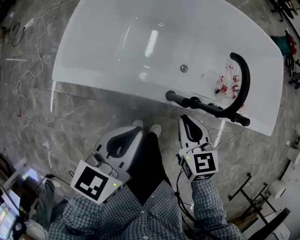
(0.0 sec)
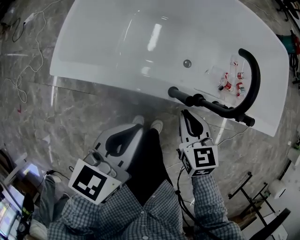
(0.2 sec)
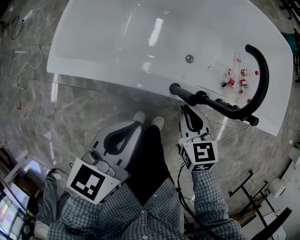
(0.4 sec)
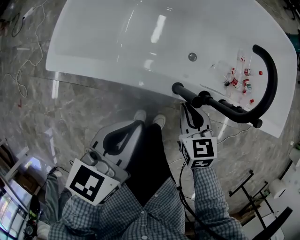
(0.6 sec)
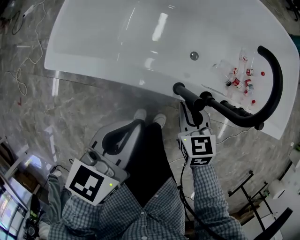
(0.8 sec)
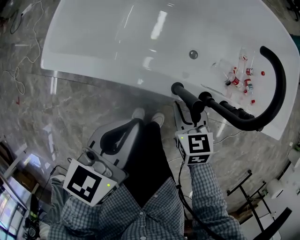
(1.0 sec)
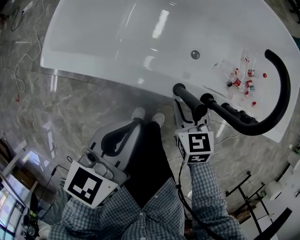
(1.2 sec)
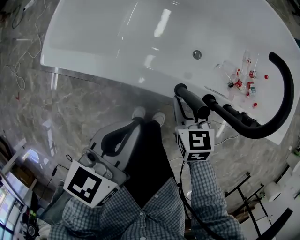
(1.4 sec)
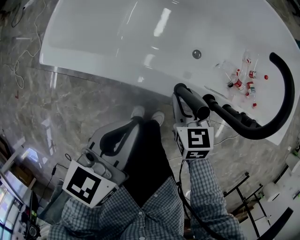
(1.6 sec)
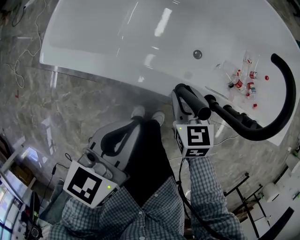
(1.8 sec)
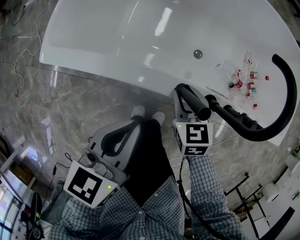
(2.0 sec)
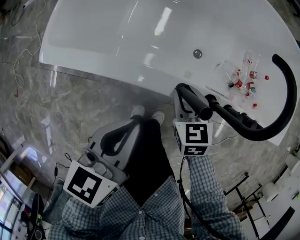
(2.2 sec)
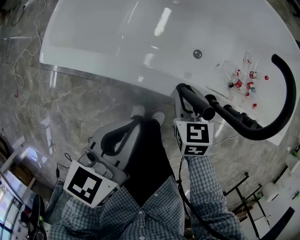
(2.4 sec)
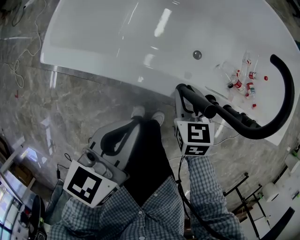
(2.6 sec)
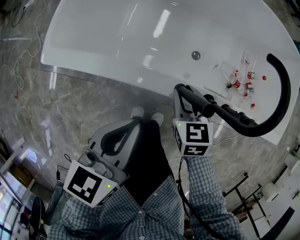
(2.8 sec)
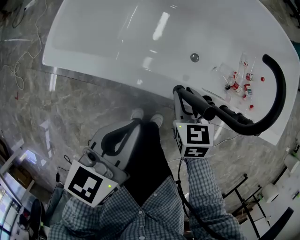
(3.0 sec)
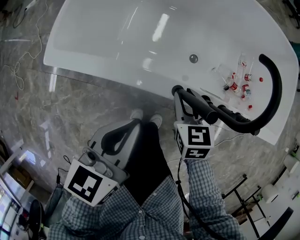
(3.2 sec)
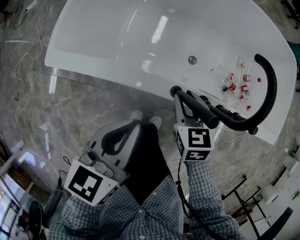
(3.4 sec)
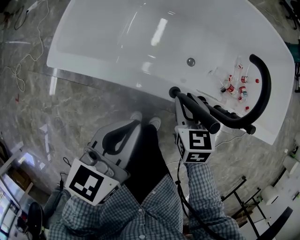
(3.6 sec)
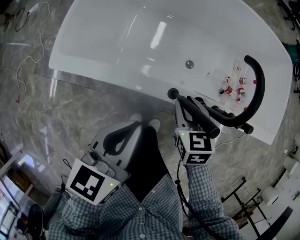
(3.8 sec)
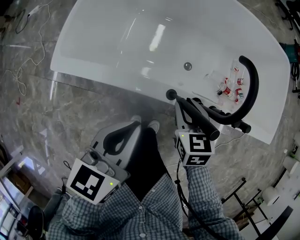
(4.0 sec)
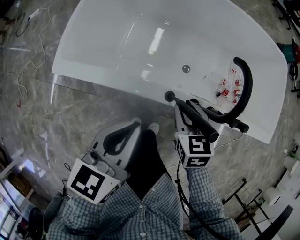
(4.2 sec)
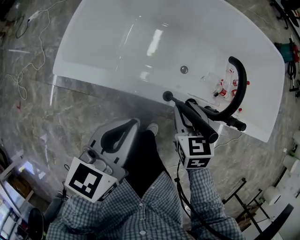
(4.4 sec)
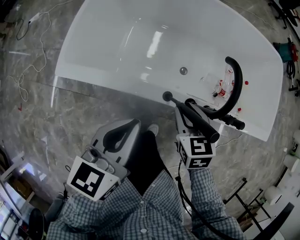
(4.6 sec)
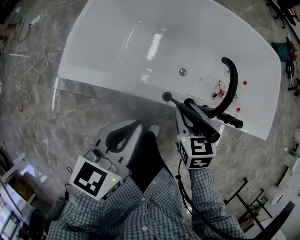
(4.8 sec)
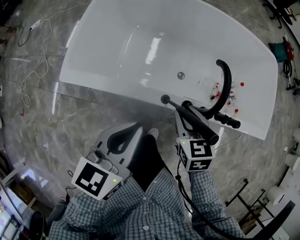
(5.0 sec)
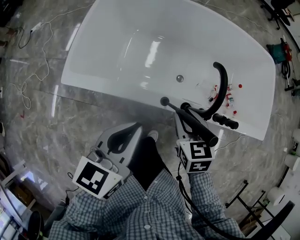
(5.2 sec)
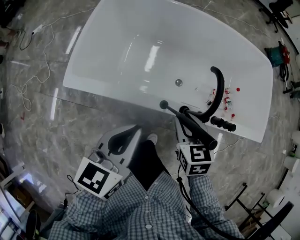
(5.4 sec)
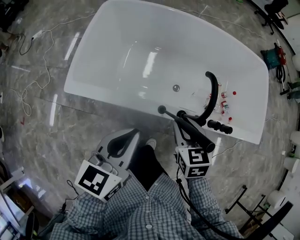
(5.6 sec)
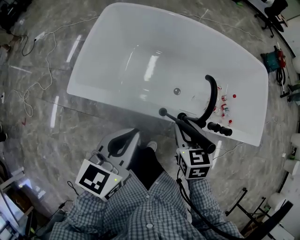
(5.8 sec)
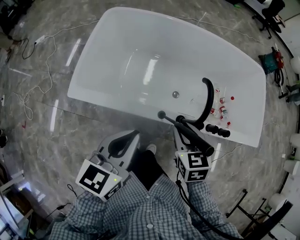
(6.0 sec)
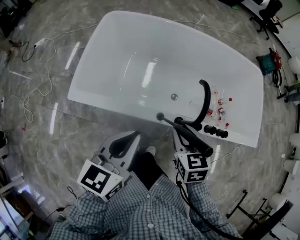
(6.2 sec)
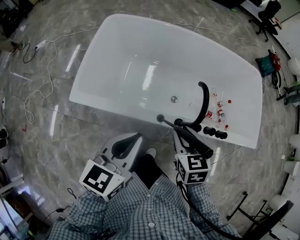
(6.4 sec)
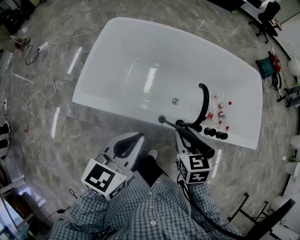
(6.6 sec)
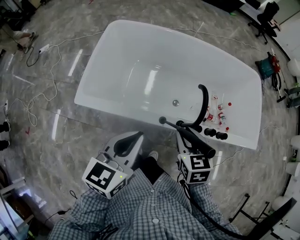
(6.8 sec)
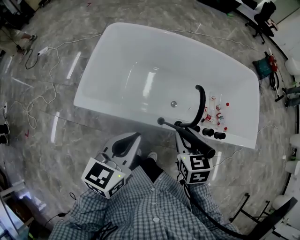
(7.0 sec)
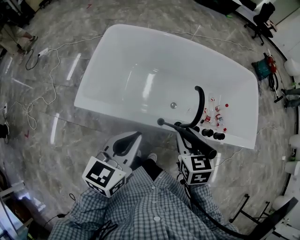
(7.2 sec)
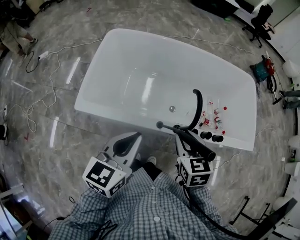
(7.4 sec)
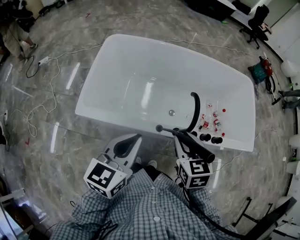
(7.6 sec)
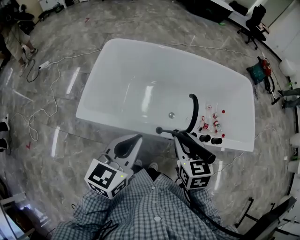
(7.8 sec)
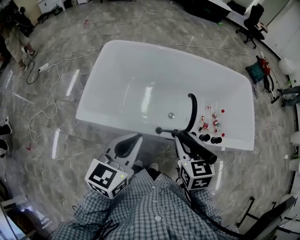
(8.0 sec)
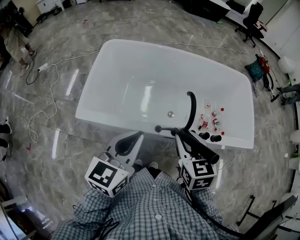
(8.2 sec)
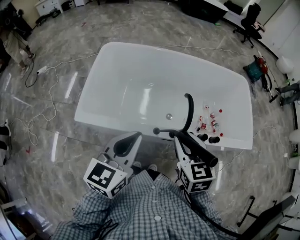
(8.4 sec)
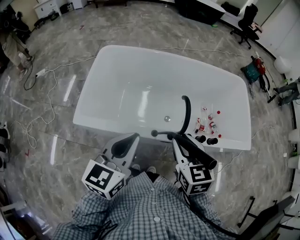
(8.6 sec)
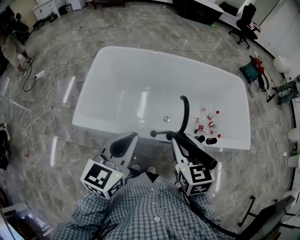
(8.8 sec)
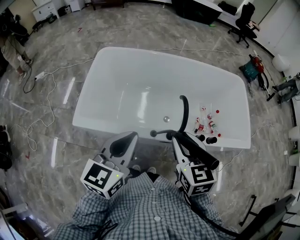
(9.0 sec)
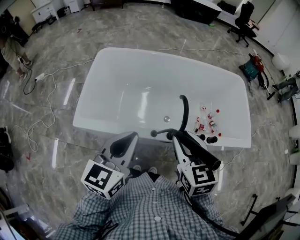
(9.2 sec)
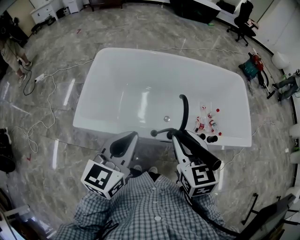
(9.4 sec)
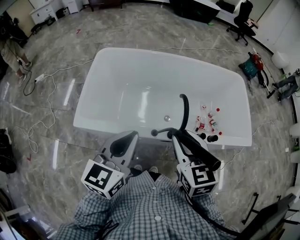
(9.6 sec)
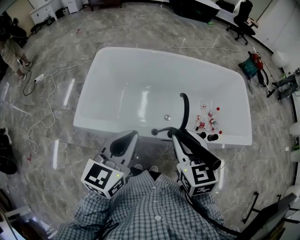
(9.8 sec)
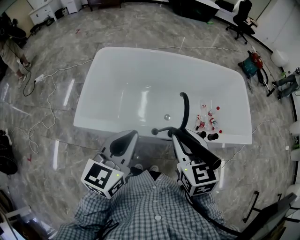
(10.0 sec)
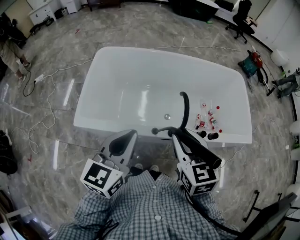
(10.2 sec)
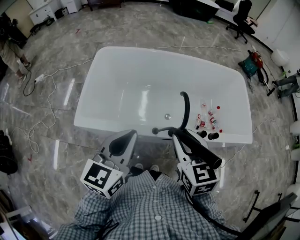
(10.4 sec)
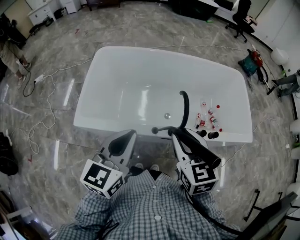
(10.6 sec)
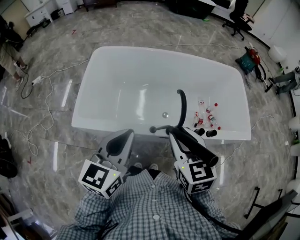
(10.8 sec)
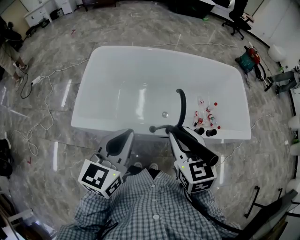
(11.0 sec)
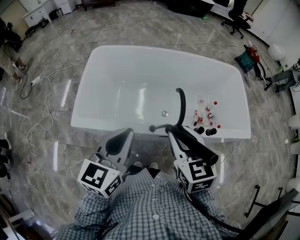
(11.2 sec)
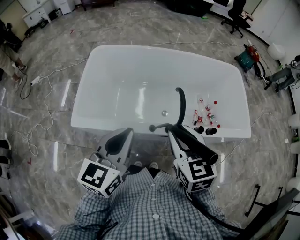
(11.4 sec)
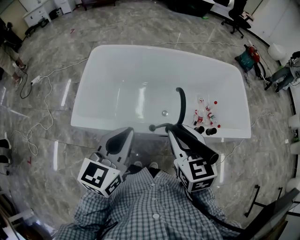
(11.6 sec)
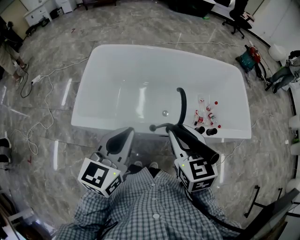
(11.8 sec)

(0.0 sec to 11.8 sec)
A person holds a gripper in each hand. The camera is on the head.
0.0 sec - 1.4 sec: The right gripper heads downward, covering about 15 cm, and opens. Meanwhile the left gripper shifts approximately 10 cm downward.
1.4 sec - 3.0 sec: There are only small adjustments of the grippers.
3.0 sec - 4.4 sec: Both grippers move upward, roughly 10 cm.
4.4 sec - 6.0 sec: The two grippers go some 10 cm upward.
6.0 sec - 7.4 sec: Both grippers move upward, approximately 5 cm.
7.4 sec - 8.8 sec: The left gripper shifts by approximately 5 cm. Meanwhile the right gripper moves upward, some 5 cm.
8.8 sec - 10.4 sec: There are only small adjustments of the grippers.
10.4 sec - 11.8 sec: Both grippers stay put.

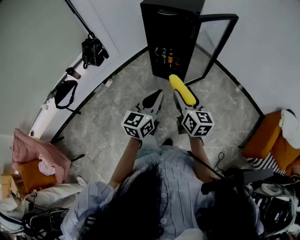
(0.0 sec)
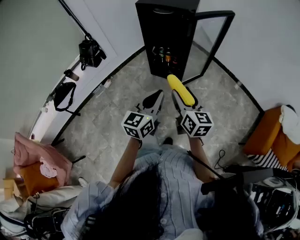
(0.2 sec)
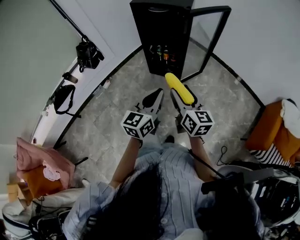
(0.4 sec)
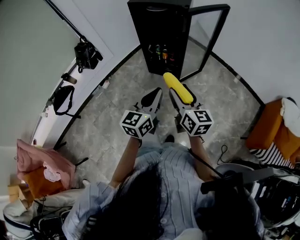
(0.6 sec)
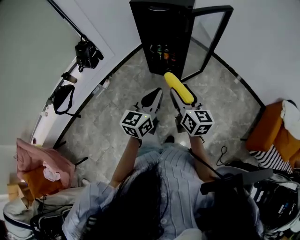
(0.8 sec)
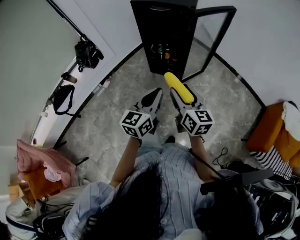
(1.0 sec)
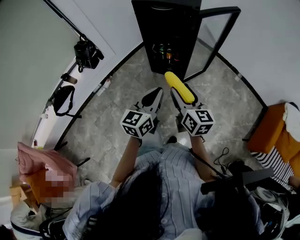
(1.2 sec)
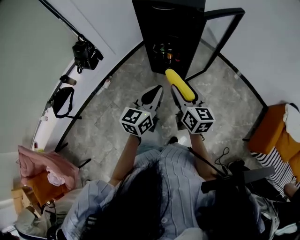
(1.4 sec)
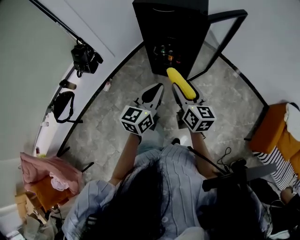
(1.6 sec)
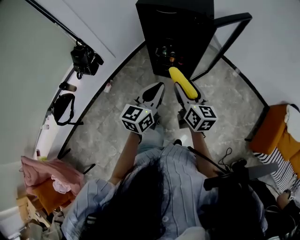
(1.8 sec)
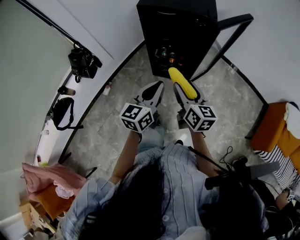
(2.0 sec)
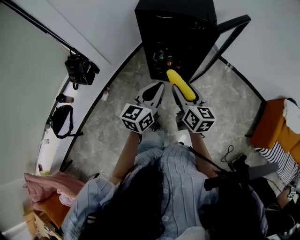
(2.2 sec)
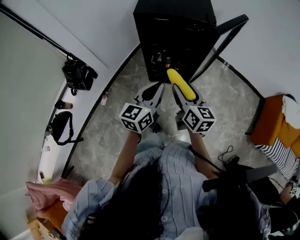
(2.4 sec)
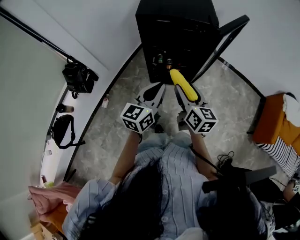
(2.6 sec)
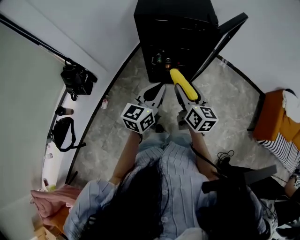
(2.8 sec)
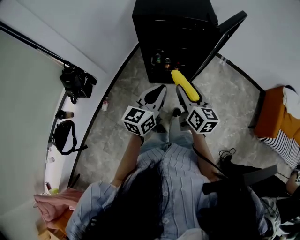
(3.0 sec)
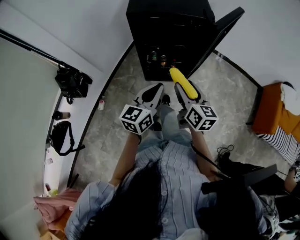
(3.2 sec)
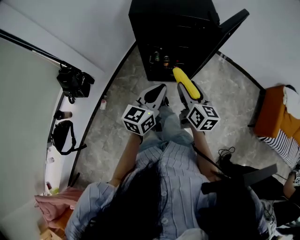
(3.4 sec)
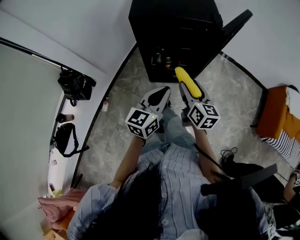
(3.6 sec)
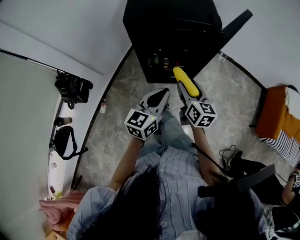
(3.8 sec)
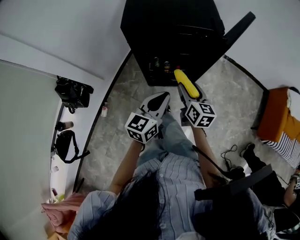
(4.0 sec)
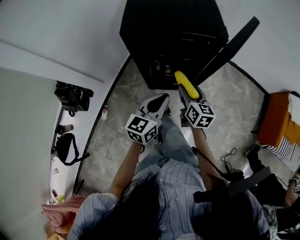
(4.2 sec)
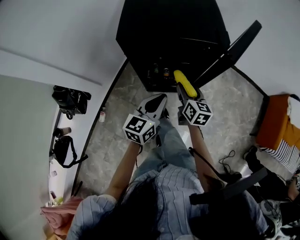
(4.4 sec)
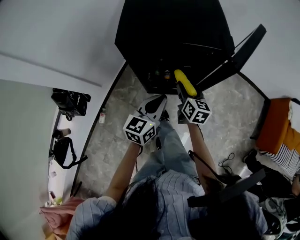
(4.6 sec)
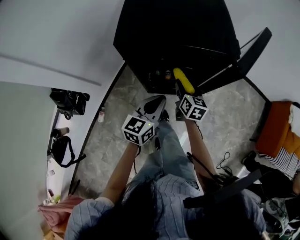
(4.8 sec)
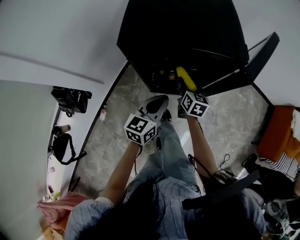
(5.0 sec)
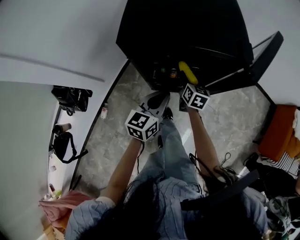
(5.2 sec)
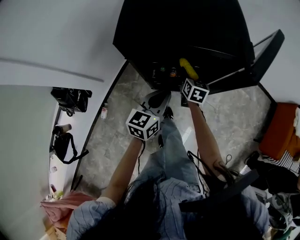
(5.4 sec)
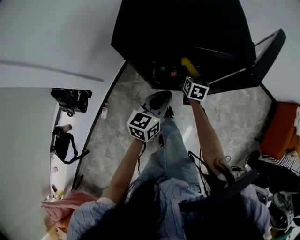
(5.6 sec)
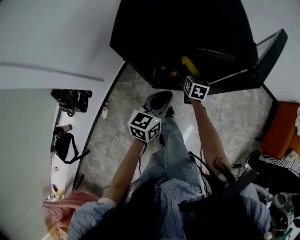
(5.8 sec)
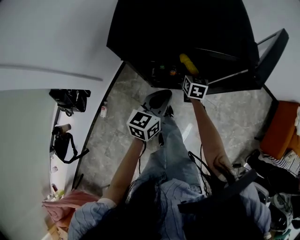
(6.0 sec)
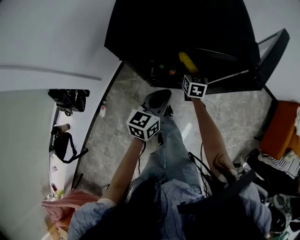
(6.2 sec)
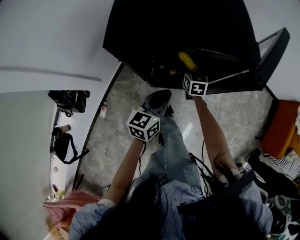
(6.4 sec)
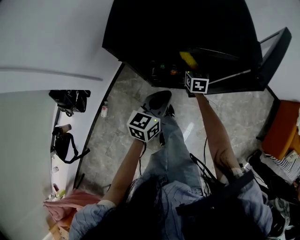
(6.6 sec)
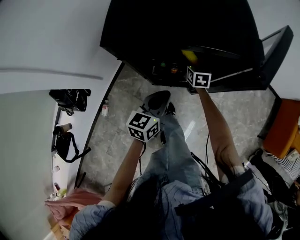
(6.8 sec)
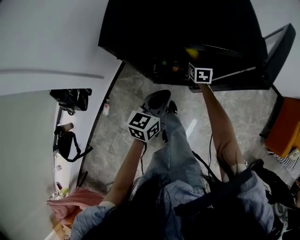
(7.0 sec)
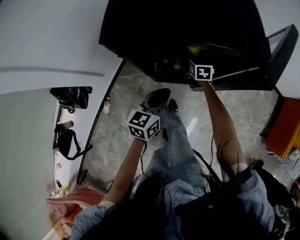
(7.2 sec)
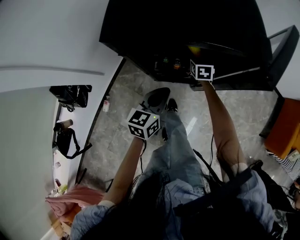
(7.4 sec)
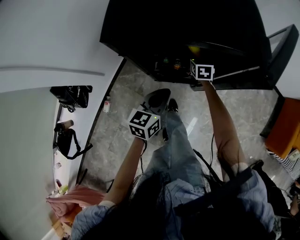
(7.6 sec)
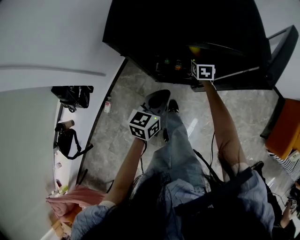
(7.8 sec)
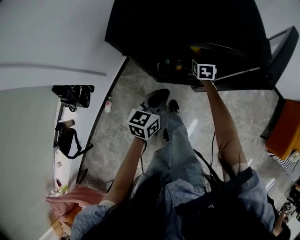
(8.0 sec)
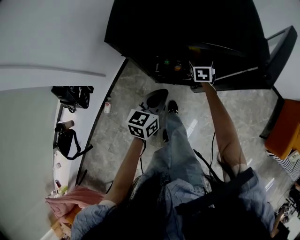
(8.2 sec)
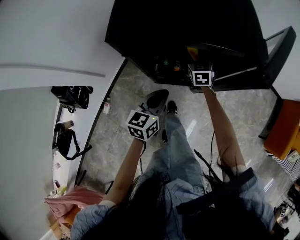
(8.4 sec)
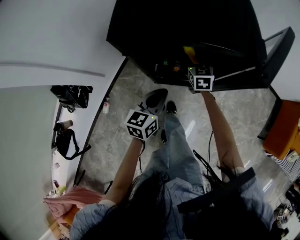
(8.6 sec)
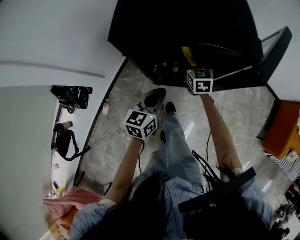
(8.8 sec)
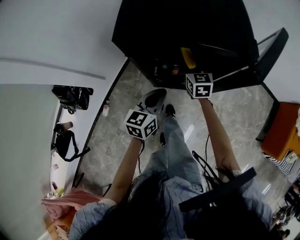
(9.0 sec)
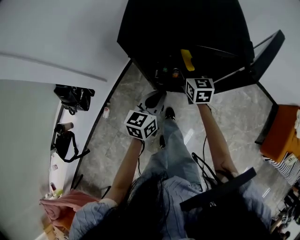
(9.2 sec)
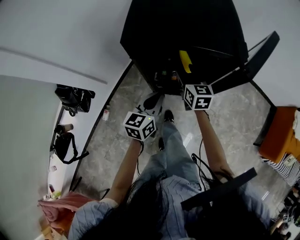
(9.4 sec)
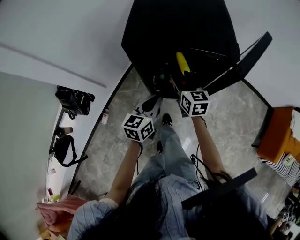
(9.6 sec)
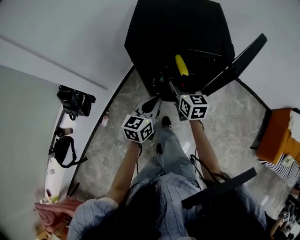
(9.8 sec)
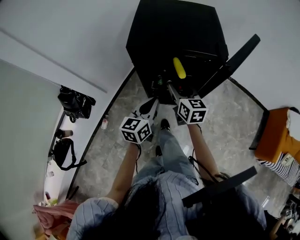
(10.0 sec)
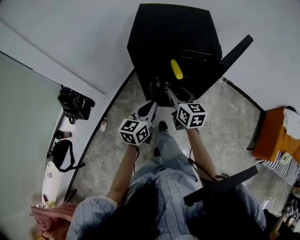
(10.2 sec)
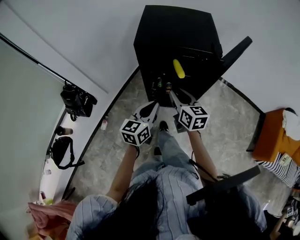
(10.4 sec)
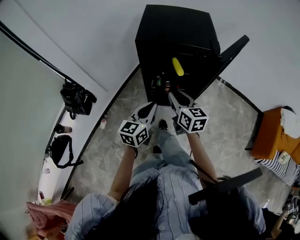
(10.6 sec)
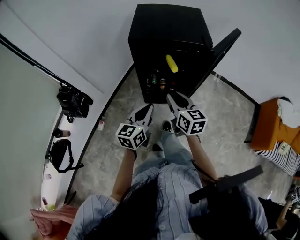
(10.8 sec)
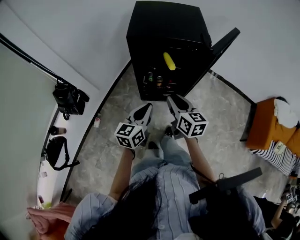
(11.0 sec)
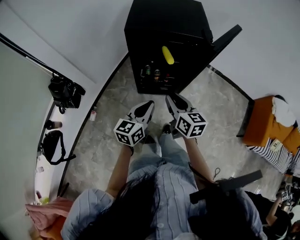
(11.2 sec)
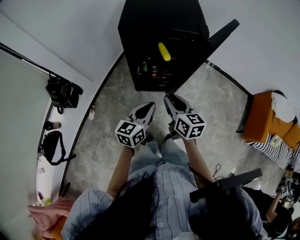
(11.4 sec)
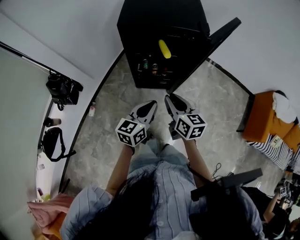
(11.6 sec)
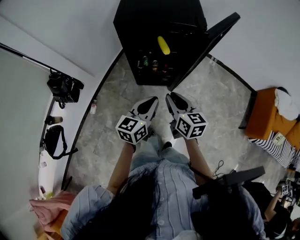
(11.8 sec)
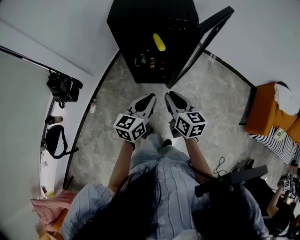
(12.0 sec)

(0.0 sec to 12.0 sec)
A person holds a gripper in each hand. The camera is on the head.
0.0 sec - 1.6 sec: The left gripper moves forward, about 15 cm; the right gripper shifts about 15 cm forward and to the left.
1.6 sec - 3.0 sec: The right gripper goes about 15 cm to the left and forward. Meanwhile the left gripper moves forward and to the left, about 15 cm.
3.0 sec - 4.4 sec: The grippers both shift forward and downward by approximately 20 cm.
4.4 sec - 6.0 sec: The left gripper is displaced downward and forward by roughly 10 cm; the right gripper is displaced forward and downward by about 20 cm.
6.0 sec - 7.6 sec: The right gripper shifts some 5 cm forward.
7.6 sec - 9.0 sec: The right gripper goes about 15 cm upward and backward.
9.0 sec - 10.4 sec: The right gripper shifts about 25 cm backward and upward, swivels about 20 degrees, and closes; the left gripper travels backward and upward by roughly 15 cm.
10.4 sec - 12.0 sec: The grippers both shift backward and to the right by some 15 cm.
